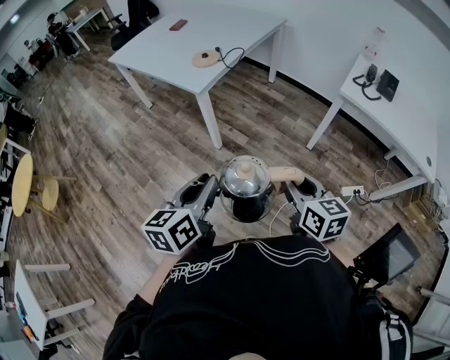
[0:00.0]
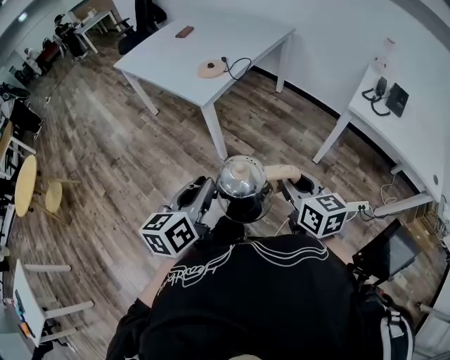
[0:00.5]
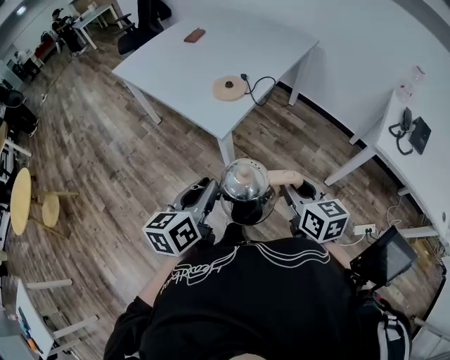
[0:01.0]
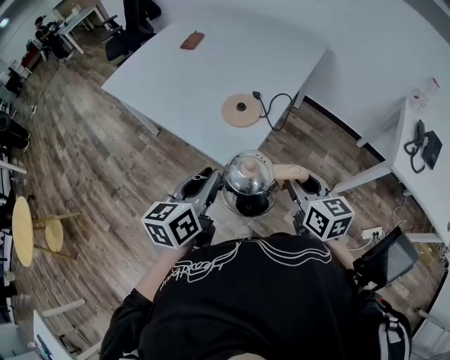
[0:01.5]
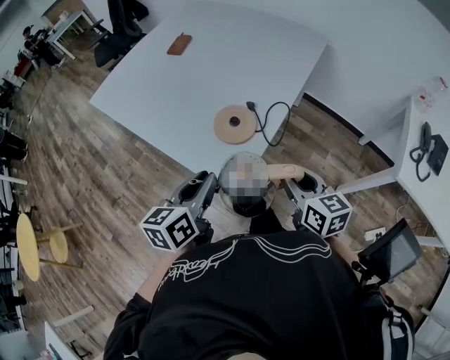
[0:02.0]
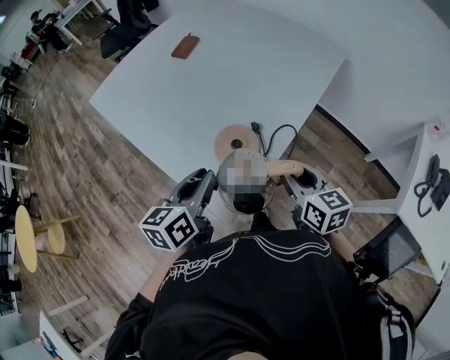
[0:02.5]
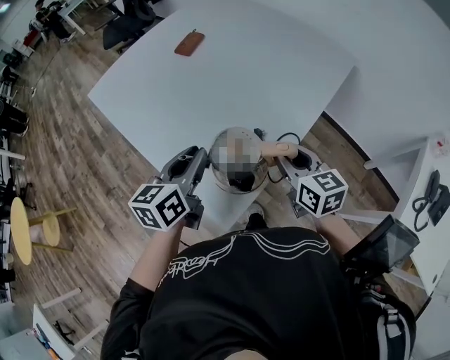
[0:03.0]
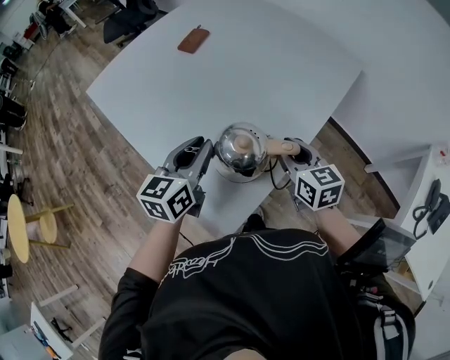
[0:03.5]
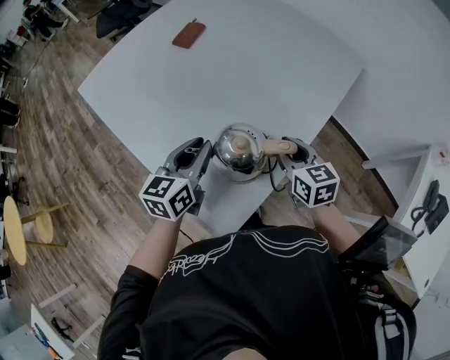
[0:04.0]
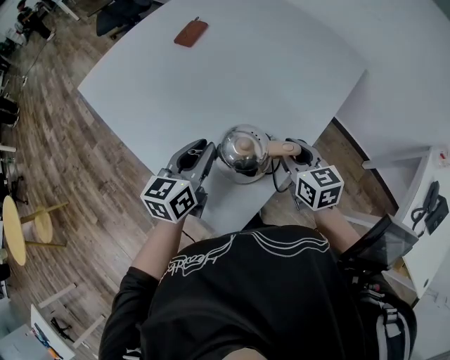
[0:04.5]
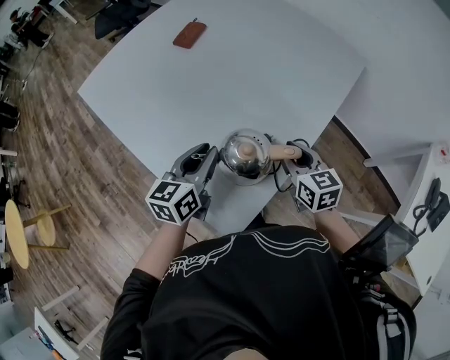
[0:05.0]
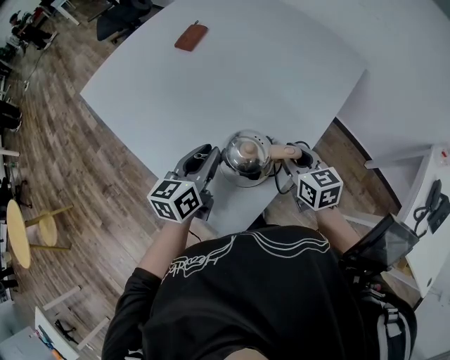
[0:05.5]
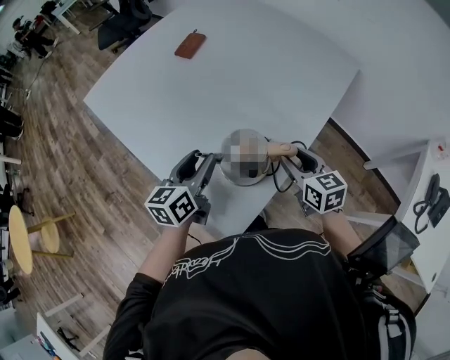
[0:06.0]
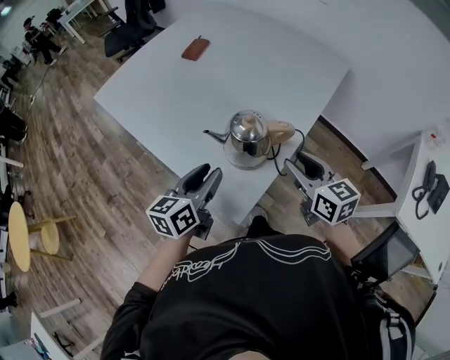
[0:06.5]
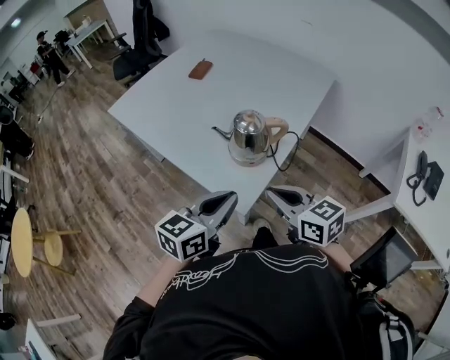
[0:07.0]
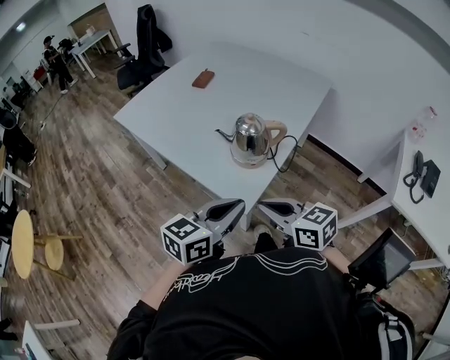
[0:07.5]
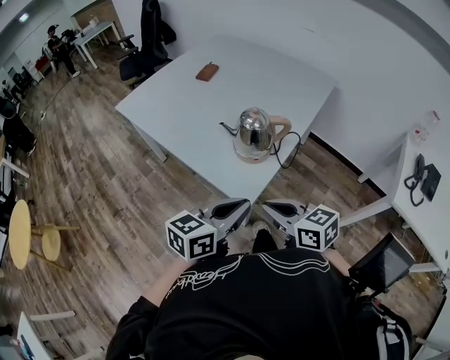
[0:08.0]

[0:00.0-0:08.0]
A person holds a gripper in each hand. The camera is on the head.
0:00.0 to 0:02.0: The two grippers travel together, forward, about 50 cm.
0:02.0 to 0:04.0: Both grippers move forward, about 25 cm.
0:04.0 to 0:06.0: The left gripper opens its fingers.
0:06.0 to 0:08.0: The right gripper is displaced backward and to the left by approximately 30 cm, turns by some 20 degrees, and closes; the left gripper shifts roughly 30 cm backward, changes its angle by approximately 30 degrees, and closes.

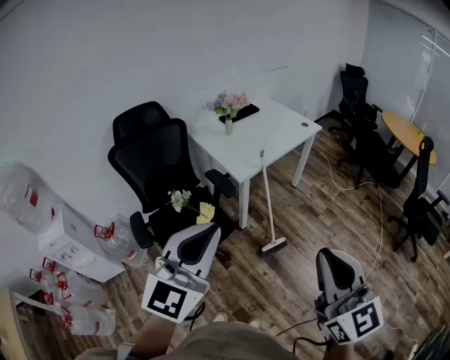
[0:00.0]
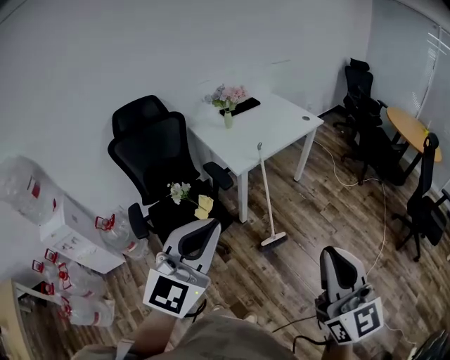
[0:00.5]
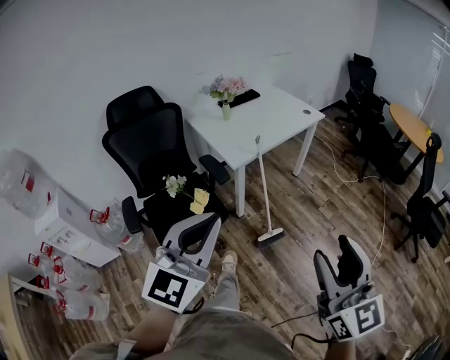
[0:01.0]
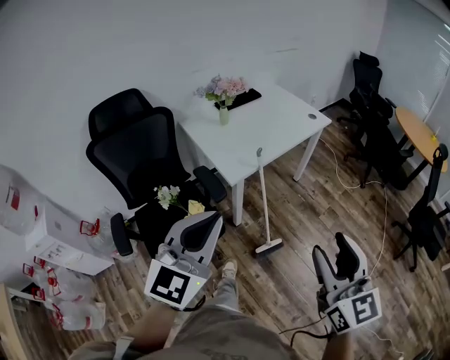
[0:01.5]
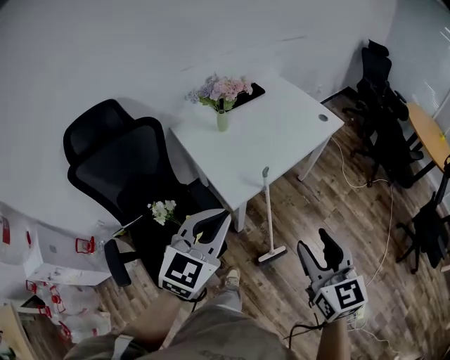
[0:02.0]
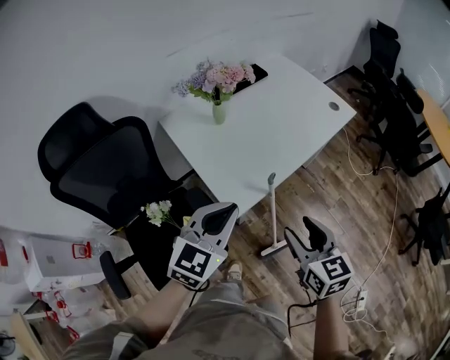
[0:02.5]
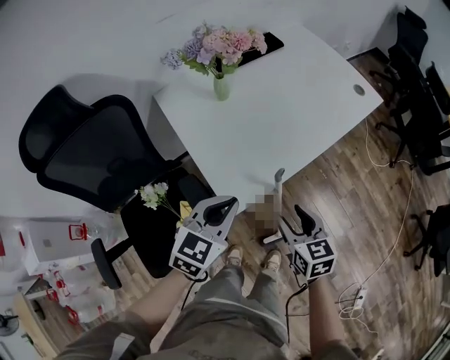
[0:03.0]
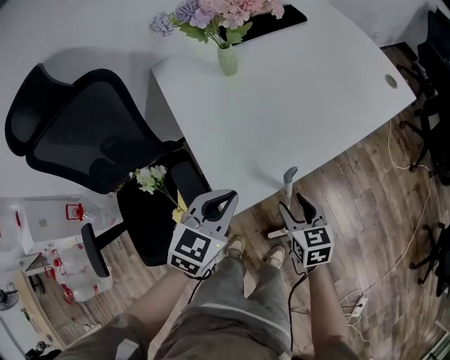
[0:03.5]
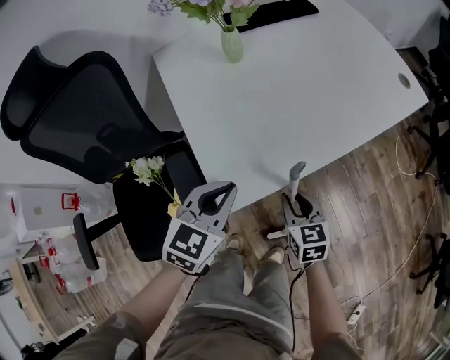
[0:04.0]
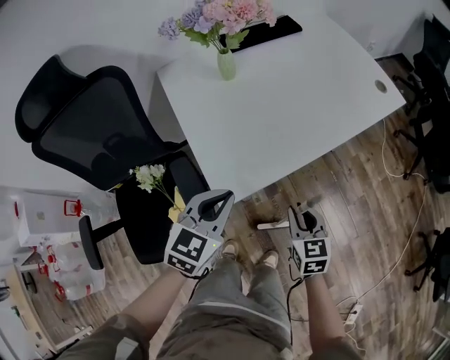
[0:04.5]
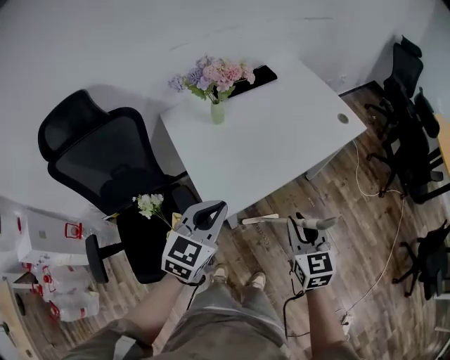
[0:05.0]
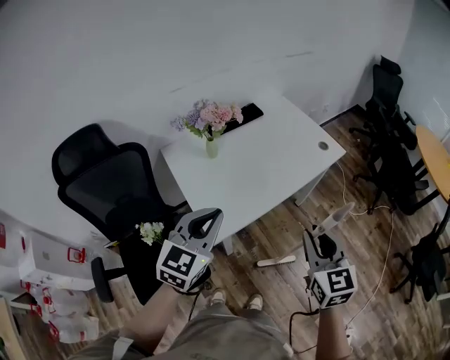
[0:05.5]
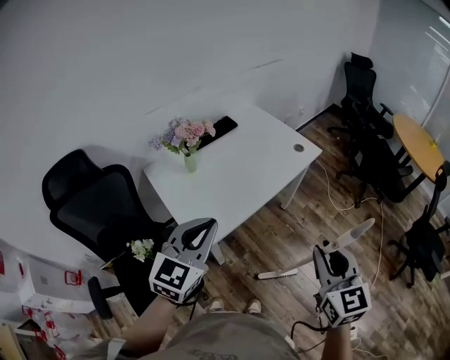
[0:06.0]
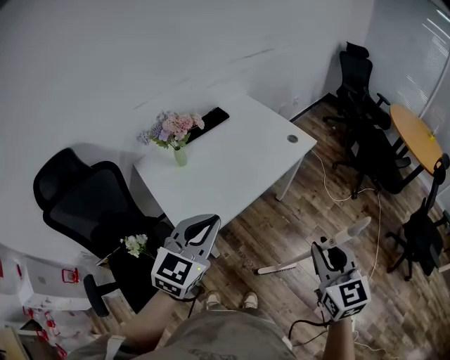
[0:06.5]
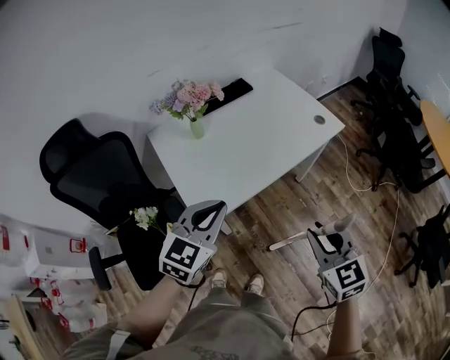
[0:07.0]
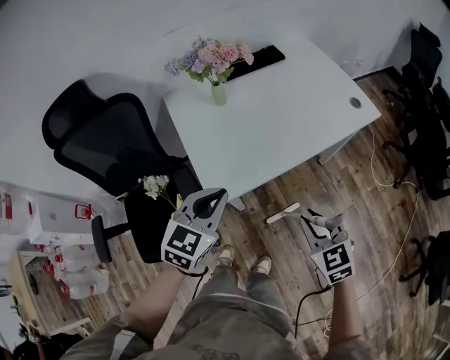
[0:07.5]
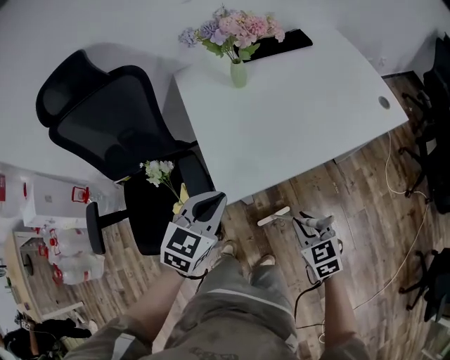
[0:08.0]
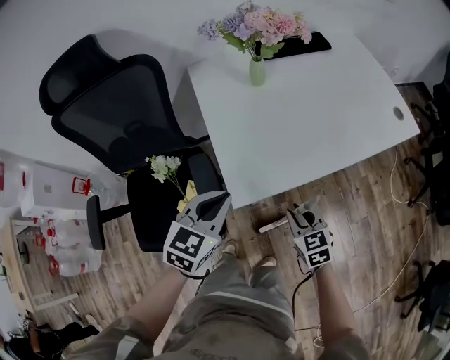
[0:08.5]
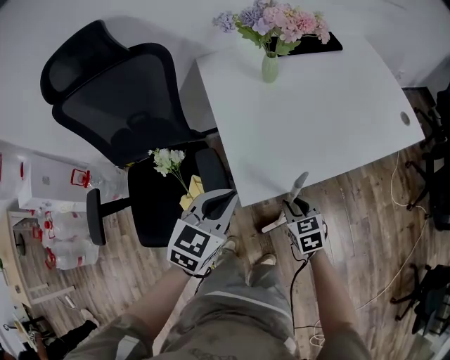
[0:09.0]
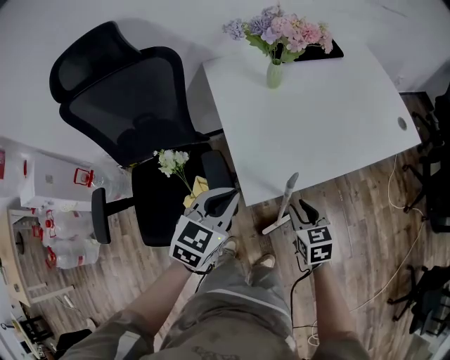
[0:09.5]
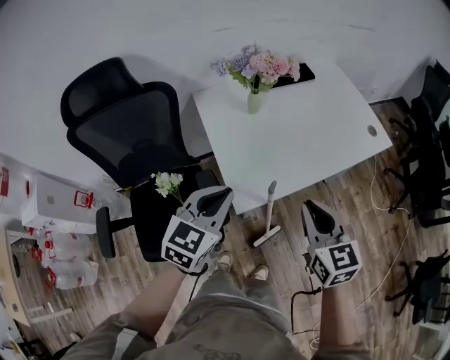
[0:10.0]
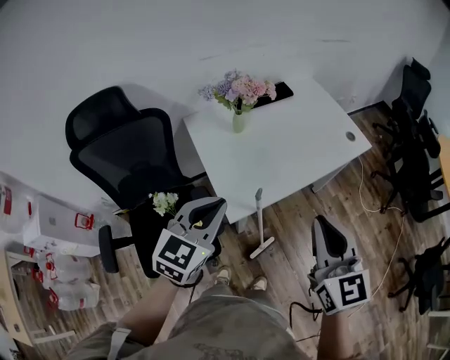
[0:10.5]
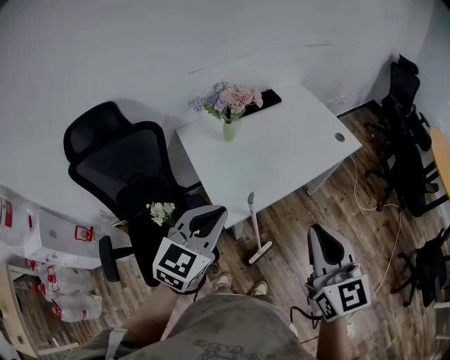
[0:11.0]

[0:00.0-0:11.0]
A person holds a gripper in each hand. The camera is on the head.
0:00.0 to 0:02.0: Both grippers move forward and downward, roughly 40 cm. The right gripper turns by roughly 20 degrees, and opens up.
0:02.0 to 0:03.5: Both grippers travel together downward and forward, approximately 35 cm. The right gripper swivels approximately 30 degrees. The left gripper changes its angle by some 20 degrees.
0:03.5 to 0:05.5: The two grippers go roughly 30 cm upward. The right gripper changes its angle by about 30 degrees, and closes up. Meanwhile the left gripper rotates approximately 20 degrees.
0:05.5 to 0:07.5: The two grippers go roughly 15 cm downward. The right gripper rotates some 30 degrees.
0:07.5 to 0:09.0: The left gripper shifts roughly 15 cm downward and to the left. The right gripper shifts roughly 25 cm downward and to the left.
0:09.0 to 0:11.0: The right gripper goes approximately 40 cm upward, and points its fingers approximately 40 degrees further upward, while the left gripper is displaced upward by some 25 cm.

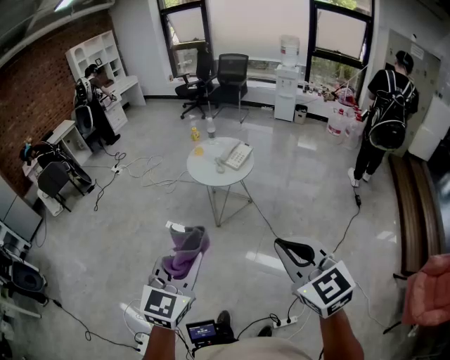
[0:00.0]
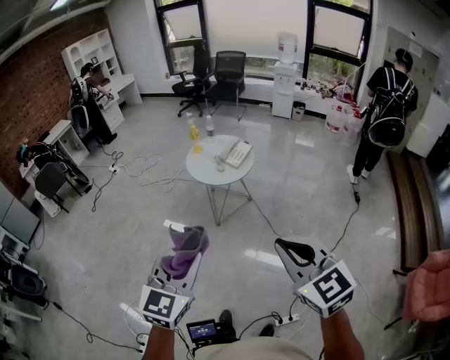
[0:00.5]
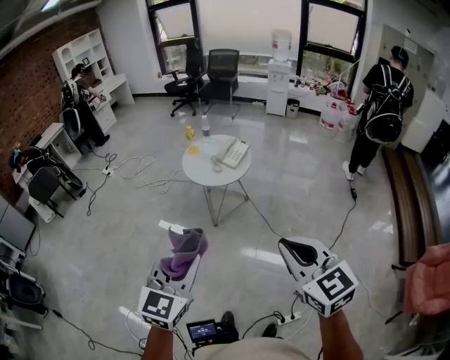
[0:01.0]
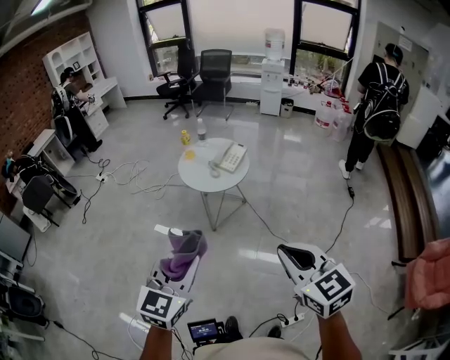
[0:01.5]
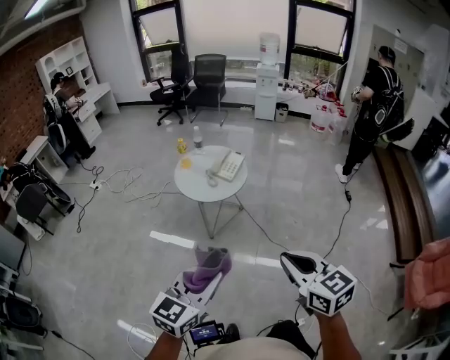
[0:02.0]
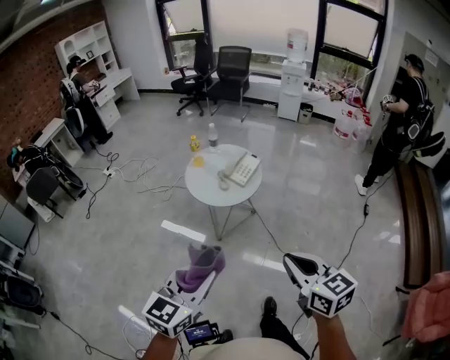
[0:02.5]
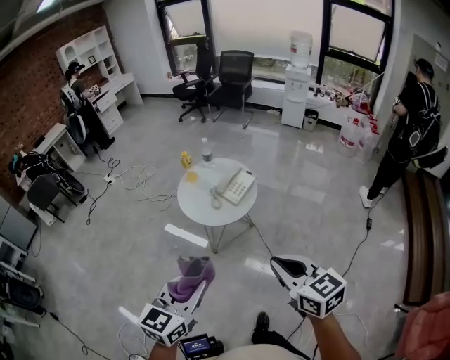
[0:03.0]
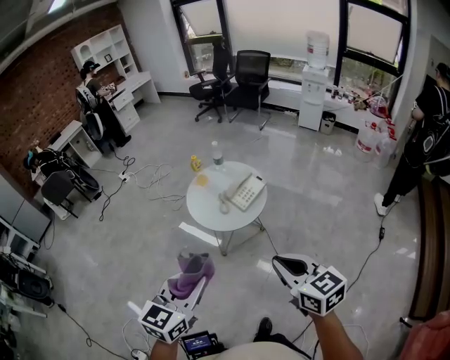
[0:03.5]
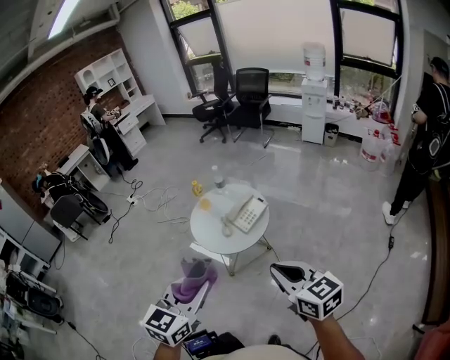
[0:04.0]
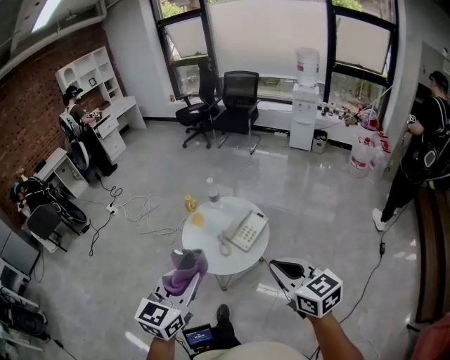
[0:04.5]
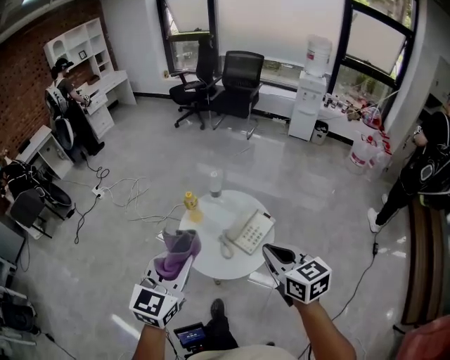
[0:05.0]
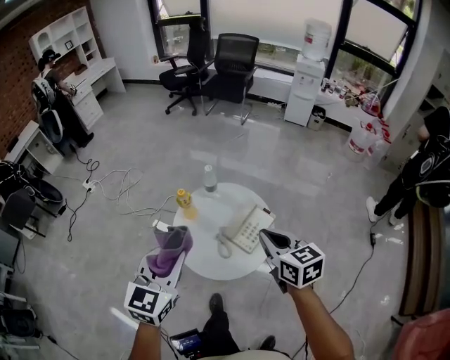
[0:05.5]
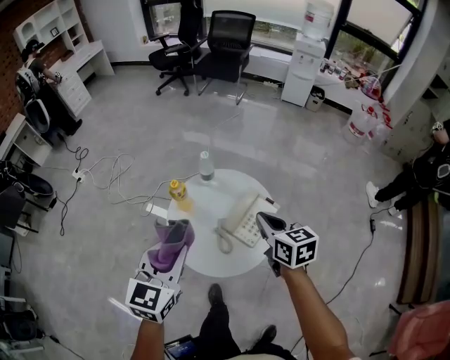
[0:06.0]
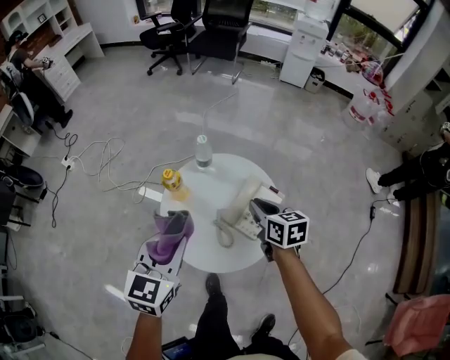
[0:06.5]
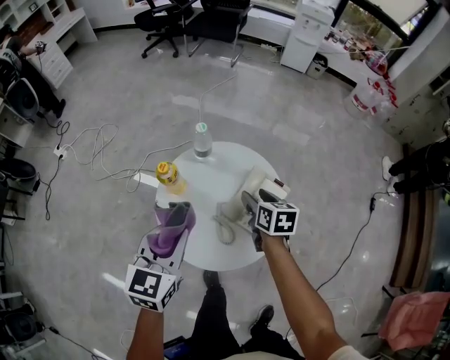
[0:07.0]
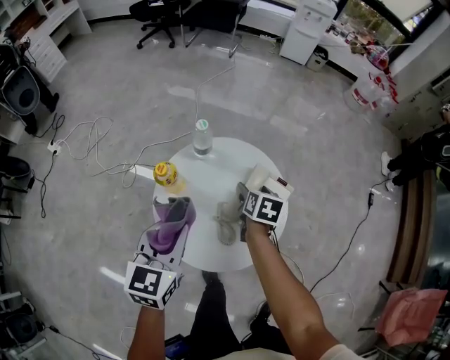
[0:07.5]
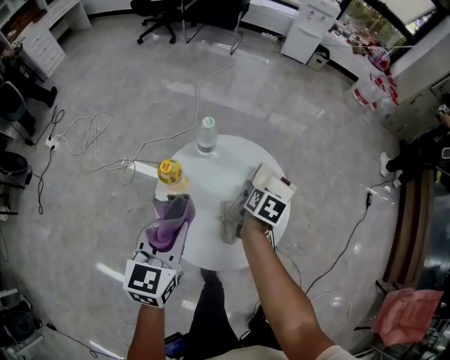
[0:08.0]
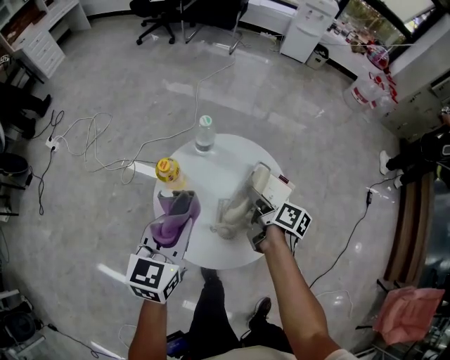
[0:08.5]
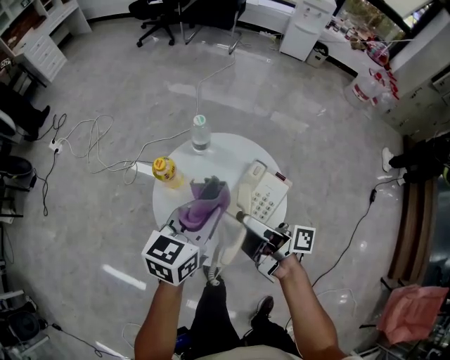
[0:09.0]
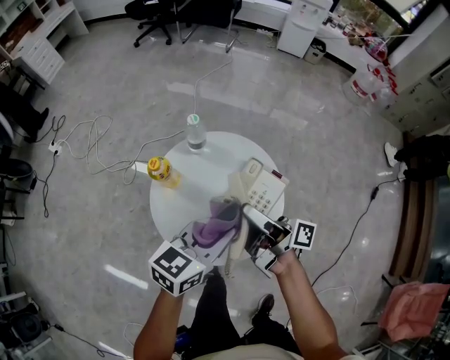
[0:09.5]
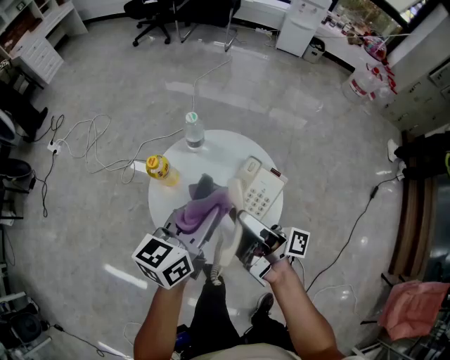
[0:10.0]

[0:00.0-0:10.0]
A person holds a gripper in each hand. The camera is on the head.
0:00.0 to 0:02.0: The right gripper goes roughly 15 cm forward, downward and to the left, and swivels approximately 20 degrees. Meanwhile the left gripper goes about 15 cm forward and downward, and changes its angle by about 30 degrees.
0:02.0 to 0:04.0: The grippers both shift forward and to the right by about 35 cm. The right gripper rotates approximately 20 degrees. The left gripper swivels approximately 20 degrees.
0:04.0 to 0:06.0: Both grippers are carried forward, about 50 cm. The right gripper moves downward, some 20 cm, and swivels about 30 degrees.
0:06.0 to 0:08.0: The left gripper heads downward and forward, covering some 20 cm. Meanwhile the right gripper goes roughly 25 cm downward and forward, rotates approximately 50 degrees, and opens up.
0:08.0 to 0:10.0: The right gripper goes some 20 cm upward and backward, and points its fingers about 70 degrees further upward; the left gripper is displaced to the right by roughly 10 cm, and swivels some 30 degrees.
